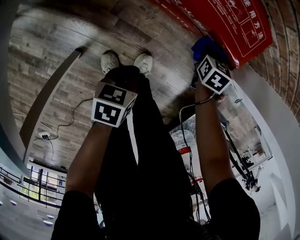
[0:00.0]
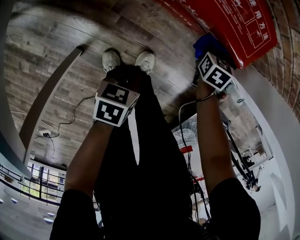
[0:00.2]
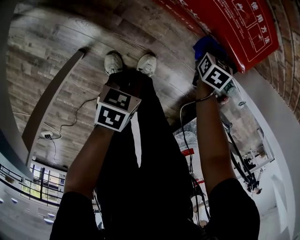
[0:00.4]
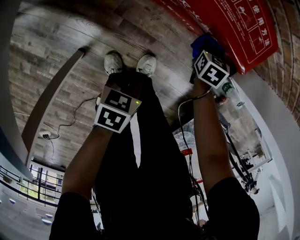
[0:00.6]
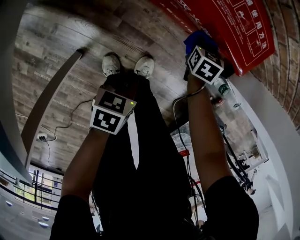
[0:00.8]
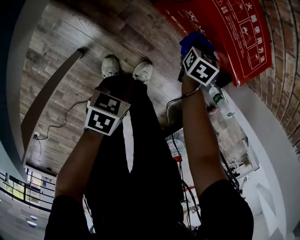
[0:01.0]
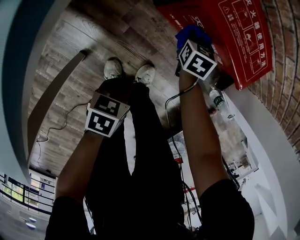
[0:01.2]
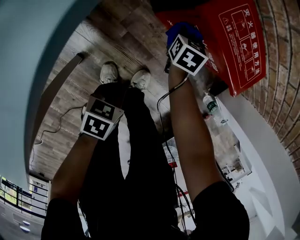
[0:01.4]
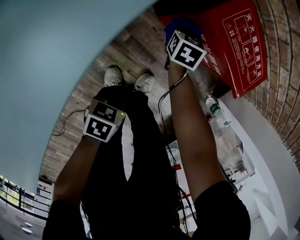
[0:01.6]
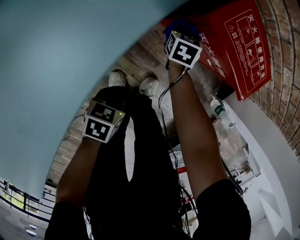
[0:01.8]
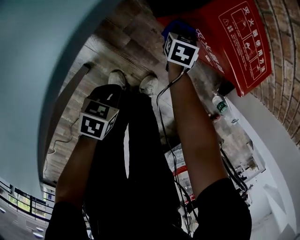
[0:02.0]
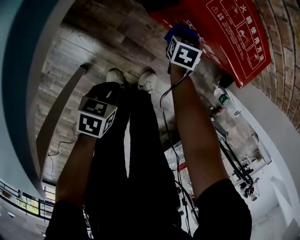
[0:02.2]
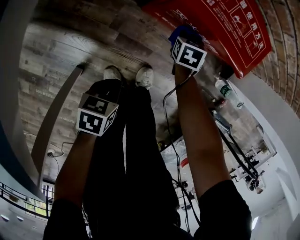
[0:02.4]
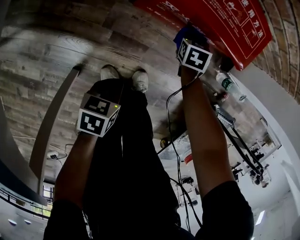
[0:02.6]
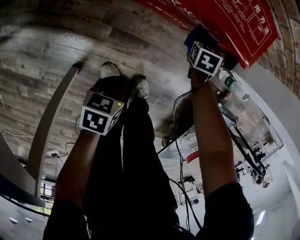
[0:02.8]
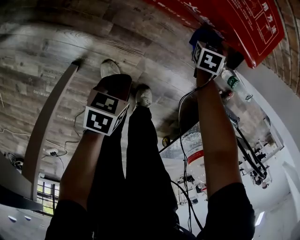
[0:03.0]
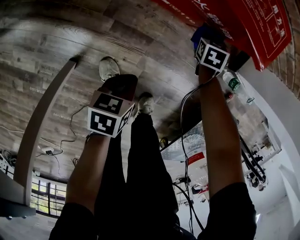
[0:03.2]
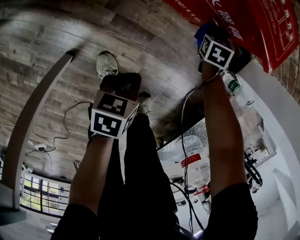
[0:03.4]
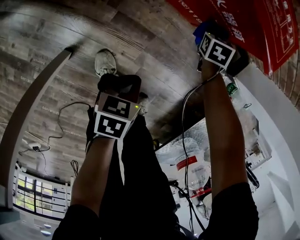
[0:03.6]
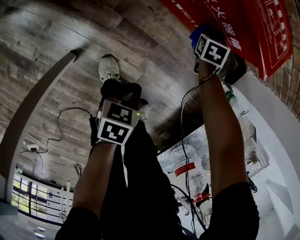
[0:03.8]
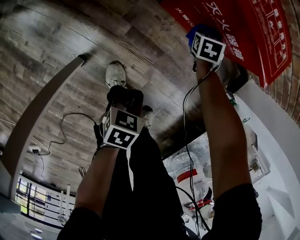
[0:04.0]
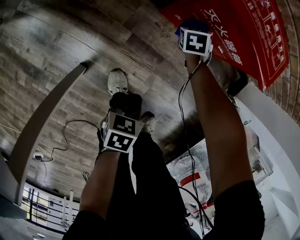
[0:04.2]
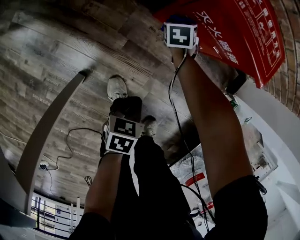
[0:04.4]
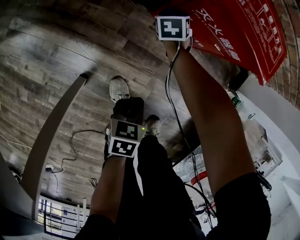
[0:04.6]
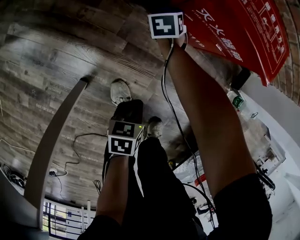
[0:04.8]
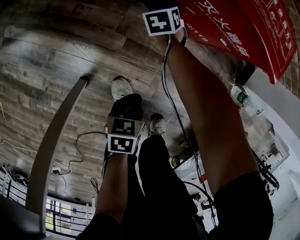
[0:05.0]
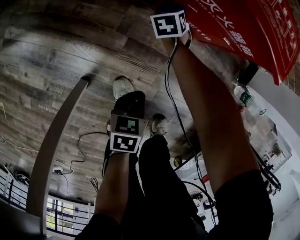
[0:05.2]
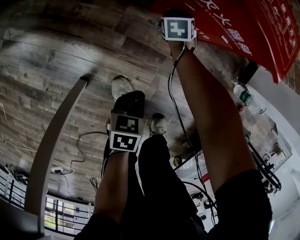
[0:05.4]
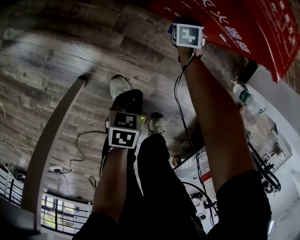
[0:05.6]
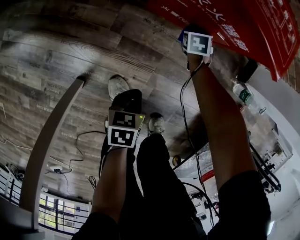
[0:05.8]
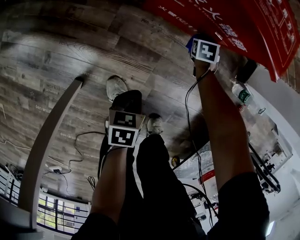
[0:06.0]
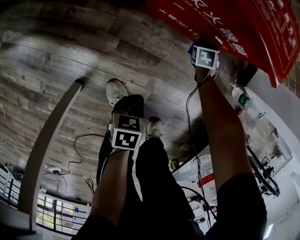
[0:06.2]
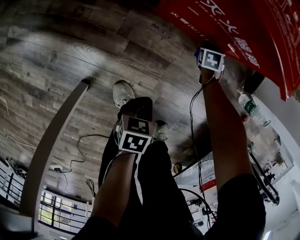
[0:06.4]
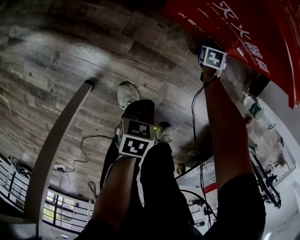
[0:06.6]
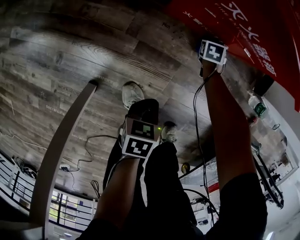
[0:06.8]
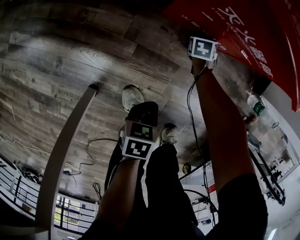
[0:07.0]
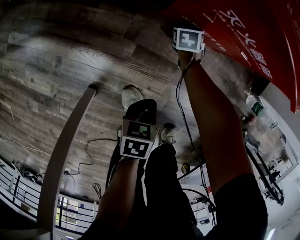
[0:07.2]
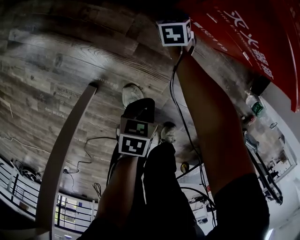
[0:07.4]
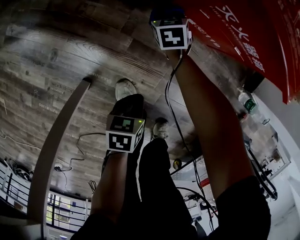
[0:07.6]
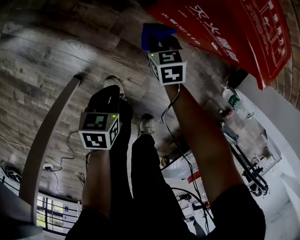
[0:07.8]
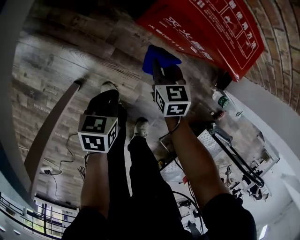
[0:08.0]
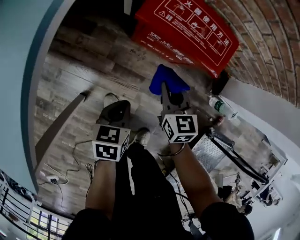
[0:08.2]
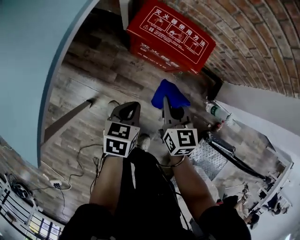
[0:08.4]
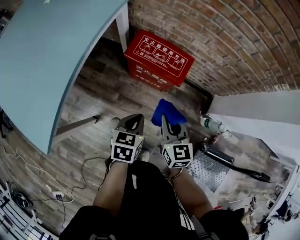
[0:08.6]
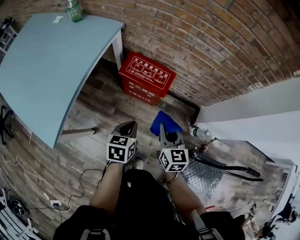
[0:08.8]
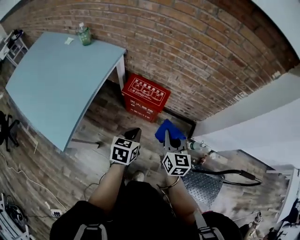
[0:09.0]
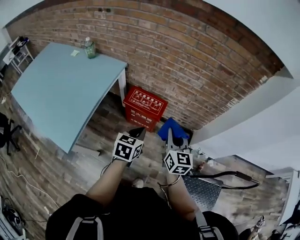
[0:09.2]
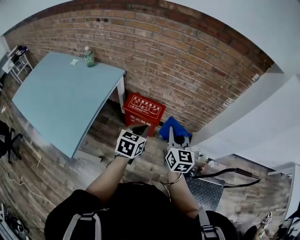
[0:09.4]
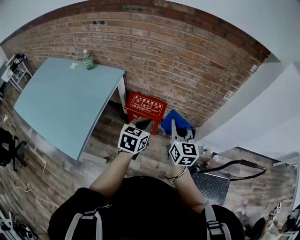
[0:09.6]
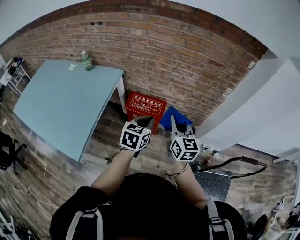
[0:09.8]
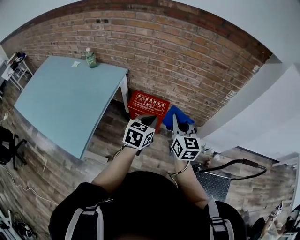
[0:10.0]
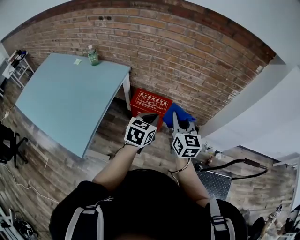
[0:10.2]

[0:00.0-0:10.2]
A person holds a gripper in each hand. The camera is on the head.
0:00.0 to 0:01.4: The right gripper goes some 20 cm to the left, while the left gripper shifts roughly 10 cm backward and to the left.
0:01.4 to 0:03.0: The right gripper travels to the right by approximately 20 cm. The left gripper goes roughly 5 cm downward.
0:03.0 to 0:04.4: The right gripper goes approximately 20 cm to the left. Meanwhile the left gripper heads backward, covering about 5 cm.
0:04.4 to 0:05.8: The left gripper heads downward, covering approximately 5 cm, while the right gripper goes roughly 15 cm to the right and downward.
0:05.8 to 0:07.2: The right gripper moves to the left and downward, roughly 15 cm.
0:07.2 to 0:08.8: Both grippers move upward, roughly 60 cm. The left gripper turns by about 30 degrees. The right gripper points its fingers roughly 50 degrees further upward.
0:08.8 to 0:10.2: Both grippers move upward, some 25 cm. The left gripper rotates about 30 degrees.

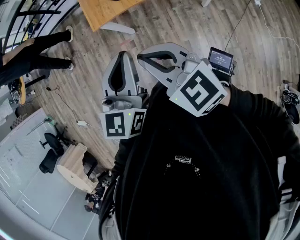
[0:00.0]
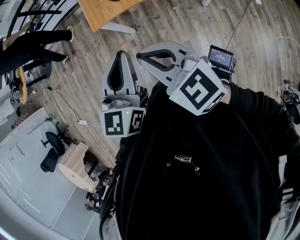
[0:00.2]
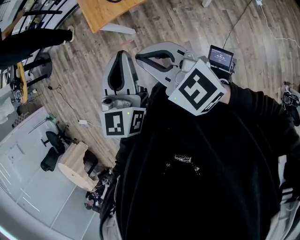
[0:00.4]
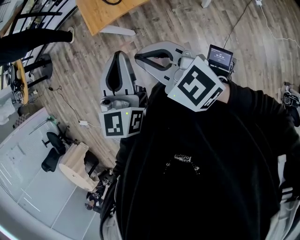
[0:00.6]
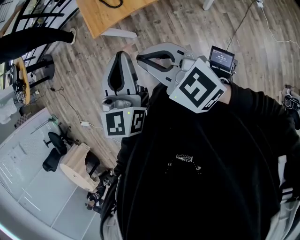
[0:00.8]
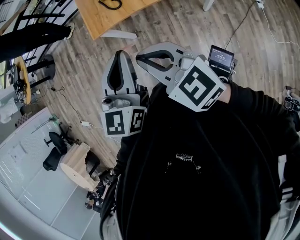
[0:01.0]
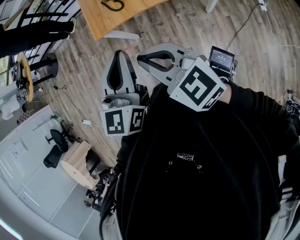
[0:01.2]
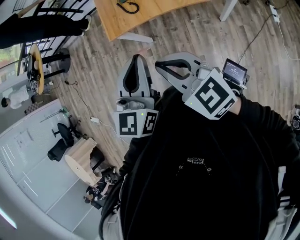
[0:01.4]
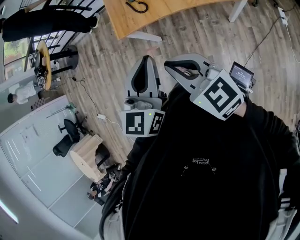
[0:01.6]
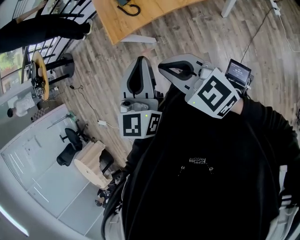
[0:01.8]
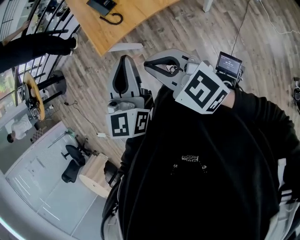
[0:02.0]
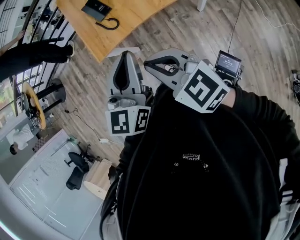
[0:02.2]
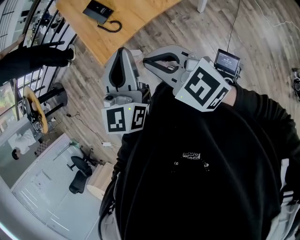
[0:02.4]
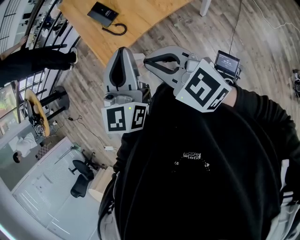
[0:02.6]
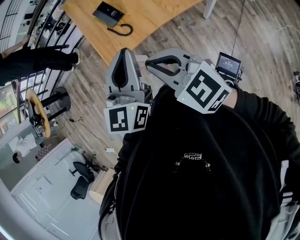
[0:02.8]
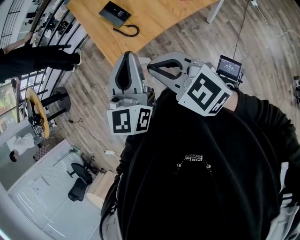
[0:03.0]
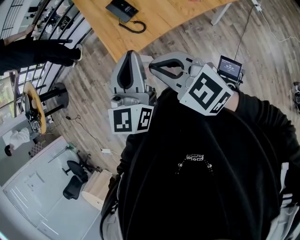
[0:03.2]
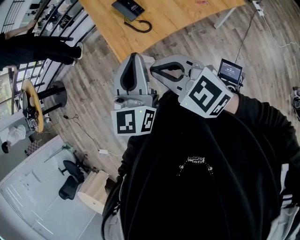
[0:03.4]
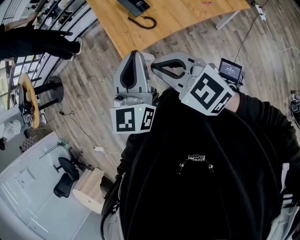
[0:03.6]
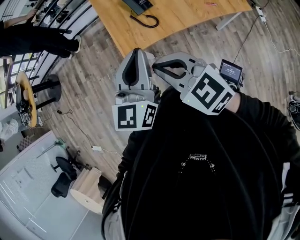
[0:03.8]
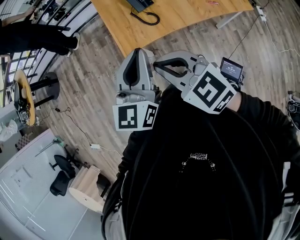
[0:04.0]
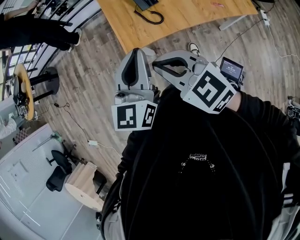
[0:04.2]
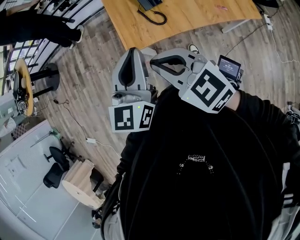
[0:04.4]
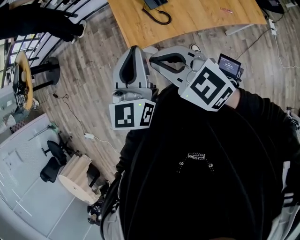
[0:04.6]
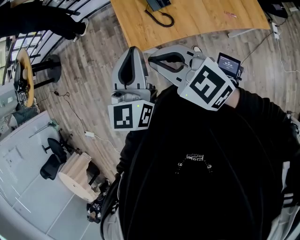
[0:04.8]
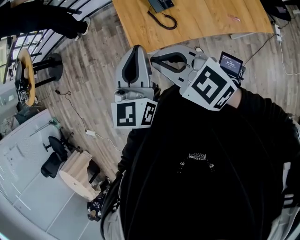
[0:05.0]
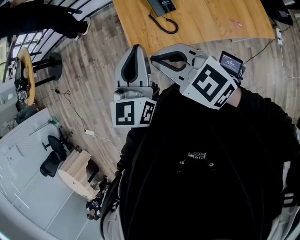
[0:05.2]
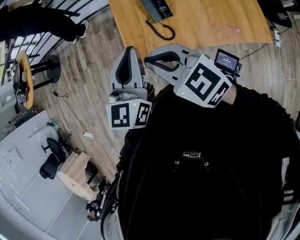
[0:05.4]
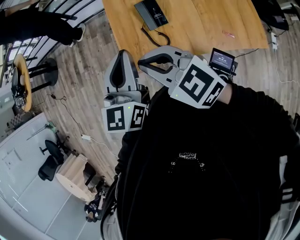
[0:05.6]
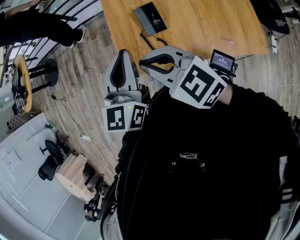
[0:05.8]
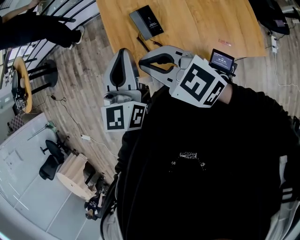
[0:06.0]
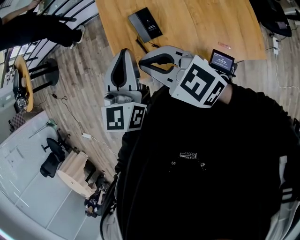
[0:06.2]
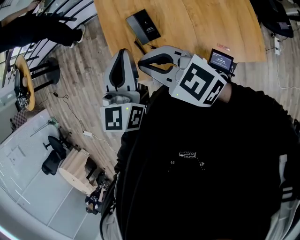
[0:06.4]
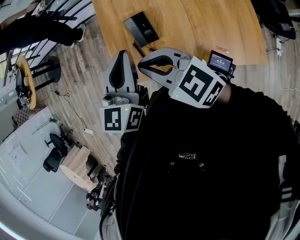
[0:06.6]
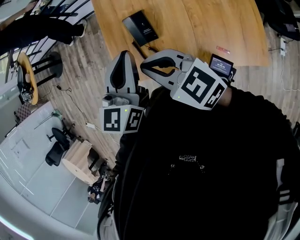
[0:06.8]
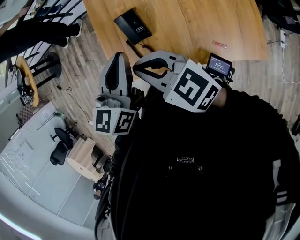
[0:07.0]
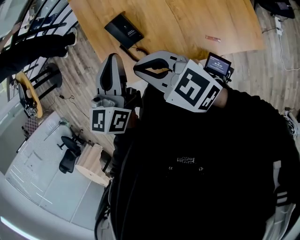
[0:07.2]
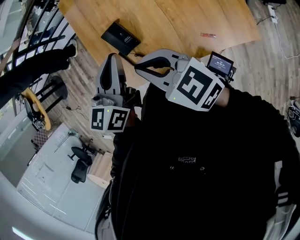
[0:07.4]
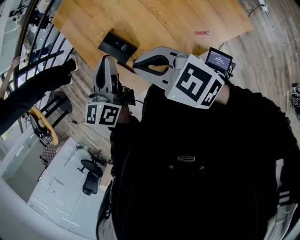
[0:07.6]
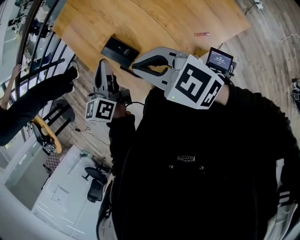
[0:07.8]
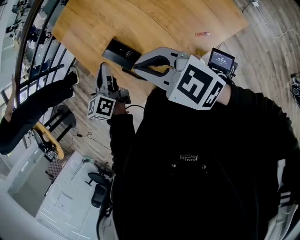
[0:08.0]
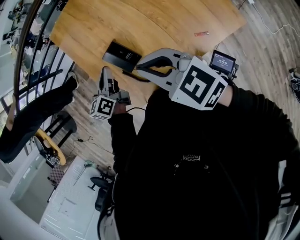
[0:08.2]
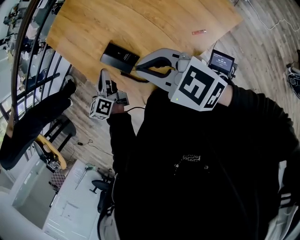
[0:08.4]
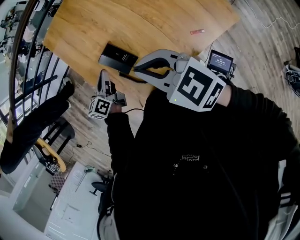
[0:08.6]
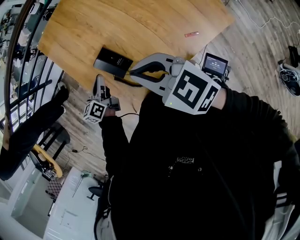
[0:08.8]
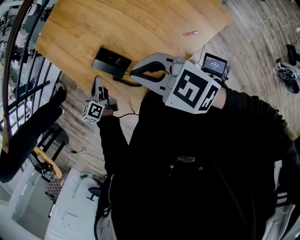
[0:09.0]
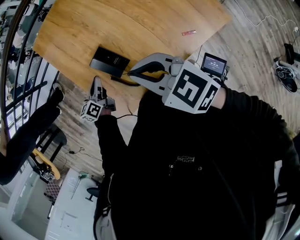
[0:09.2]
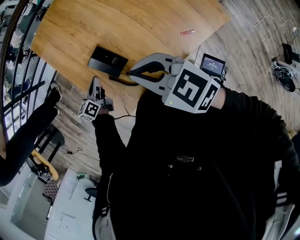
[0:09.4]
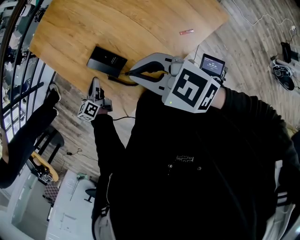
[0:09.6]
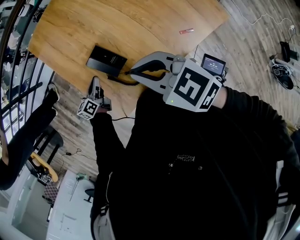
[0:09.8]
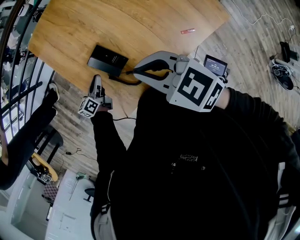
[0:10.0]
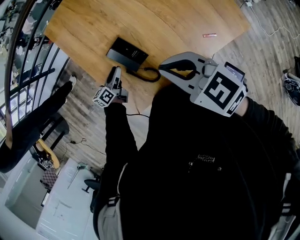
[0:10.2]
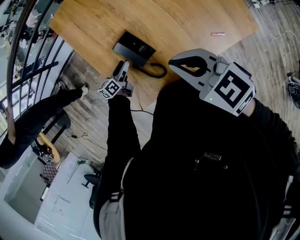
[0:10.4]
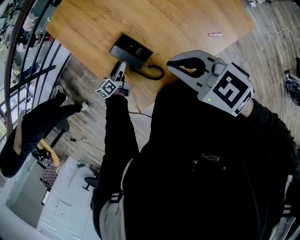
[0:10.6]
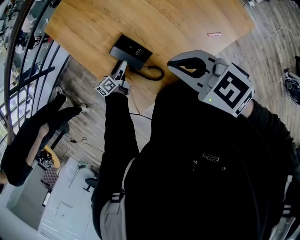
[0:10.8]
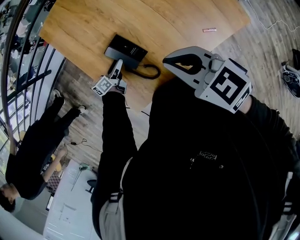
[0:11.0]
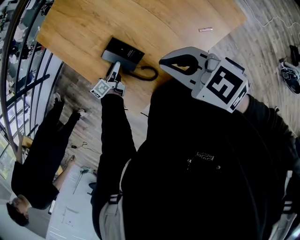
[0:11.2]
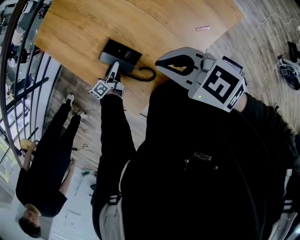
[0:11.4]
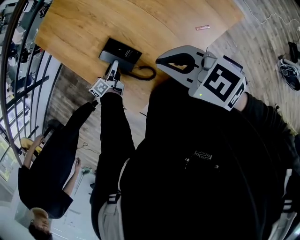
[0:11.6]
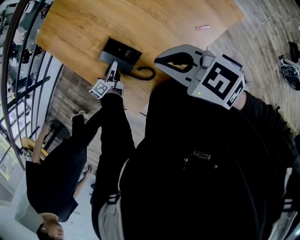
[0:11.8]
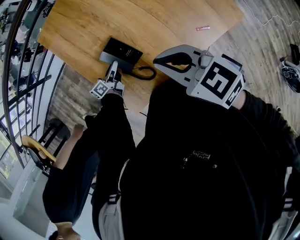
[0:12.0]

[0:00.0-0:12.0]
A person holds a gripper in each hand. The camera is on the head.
0:00.0 to 0:01.6: The two grippers go some 10 cm to the right.
0:01.6 to 0:03.0: Both grippers move forward and to the left, roughly 15 cm.
0:03.0 to 0:04.4: Both grippers move to the left and forward, some 15 cm.
0:04.4 to 0:06.0: Both grippers move forward and to the right, about 25 cm.
0:06.0 to 0:07.6: The right gripper goes roughly 15 cm to the right, and swivels about 20 degrees. Meanwhile the left gripper moves to the right, downward and forward, approximately 20 cm, and changes its angle by roughly 30 degrees.
0:07.6 to 0:09.0: The left gripper is displaced downward and to the left by about 25 cm.
0:09.0 to 0:10.4: The left gripper moves downward, roughly 10 cm, and opens up.
0:10.4 to 0:12.0: The left gripper closes up.

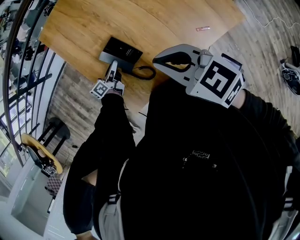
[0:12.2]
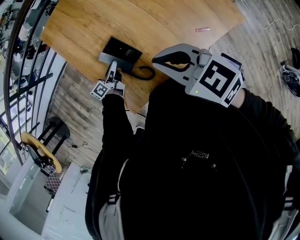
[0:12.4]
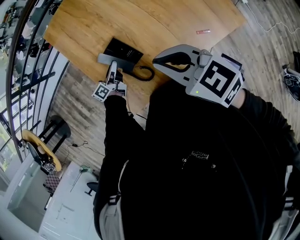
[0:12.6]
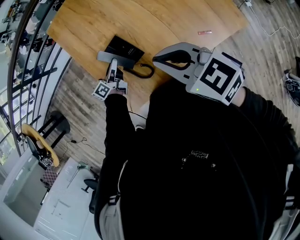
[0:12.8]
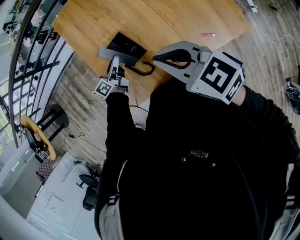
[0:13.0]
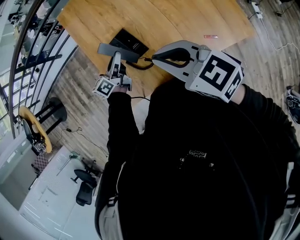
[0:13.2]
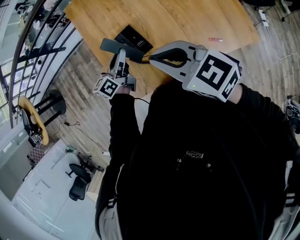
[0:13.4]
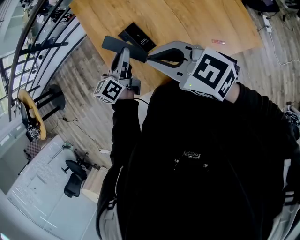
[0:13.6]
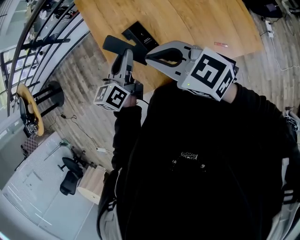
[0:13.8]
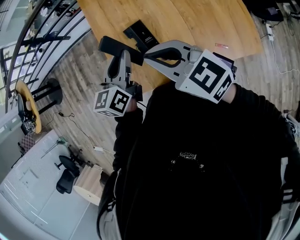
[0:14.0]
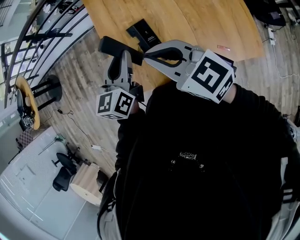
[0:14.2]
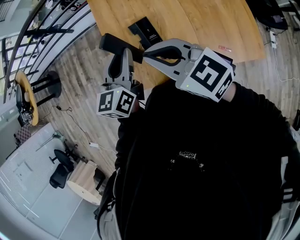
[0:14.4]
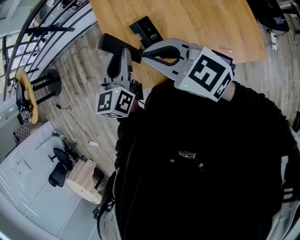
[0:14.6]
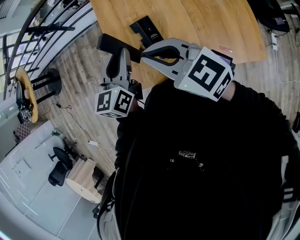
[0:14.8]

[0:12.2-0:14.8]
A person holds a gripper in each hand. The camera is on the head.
0:12.2 to 0:13.4: The right gripper shifts by approximately 5 cm. The left gripper goes about 20 cm upward, and turns by roughly 30 degrees.
0:13.4 to 0:14.8: The left gripper heads upward, covering some 15 cm, and rotates roughly 30 degrees; the right gripper travels to the left by about 5 cm.
